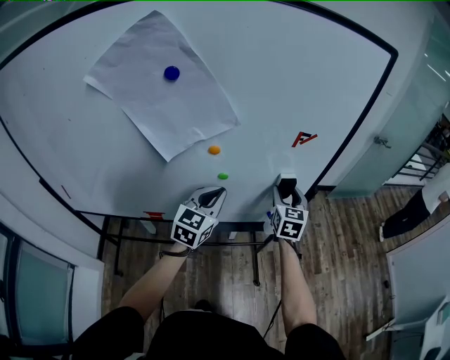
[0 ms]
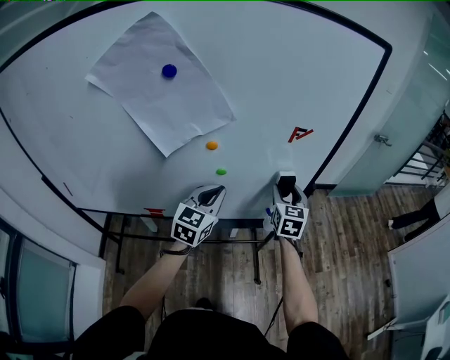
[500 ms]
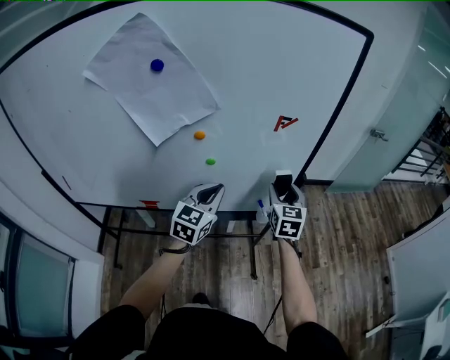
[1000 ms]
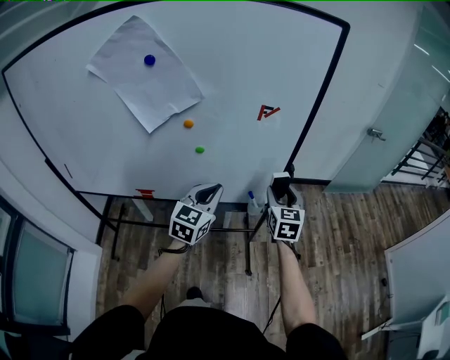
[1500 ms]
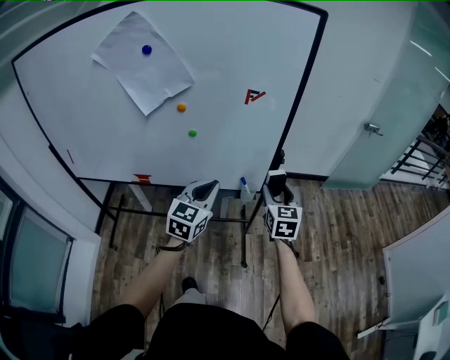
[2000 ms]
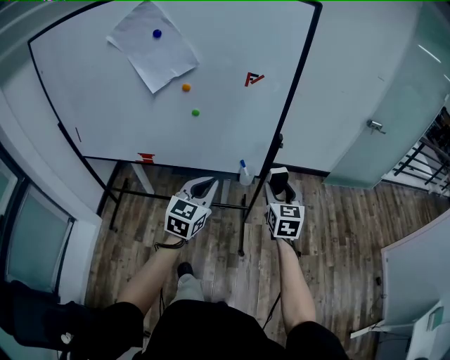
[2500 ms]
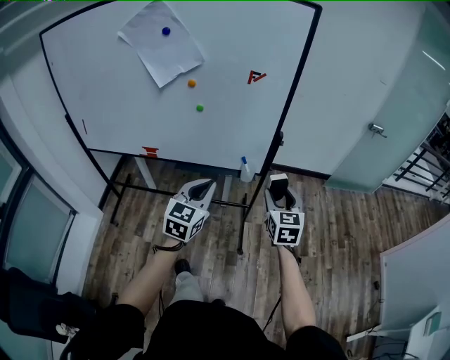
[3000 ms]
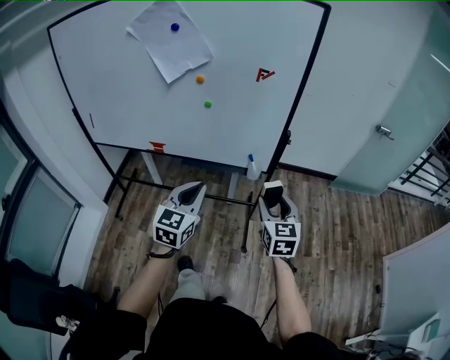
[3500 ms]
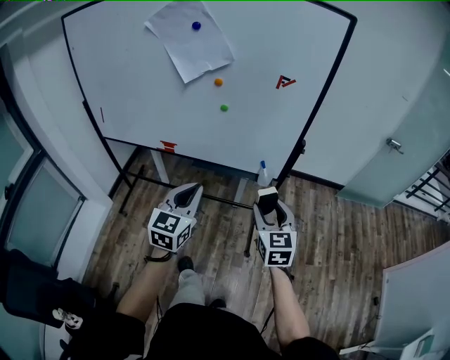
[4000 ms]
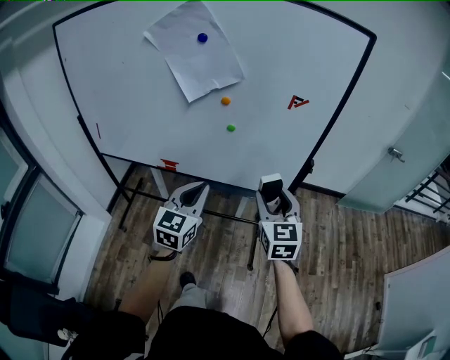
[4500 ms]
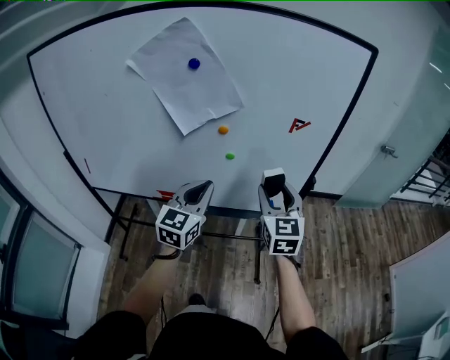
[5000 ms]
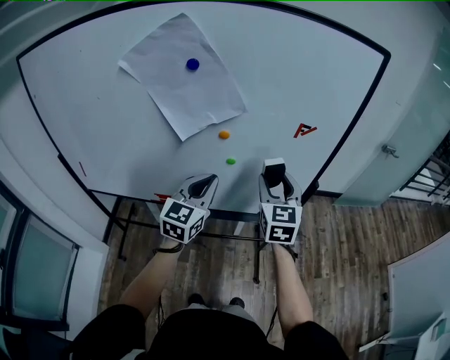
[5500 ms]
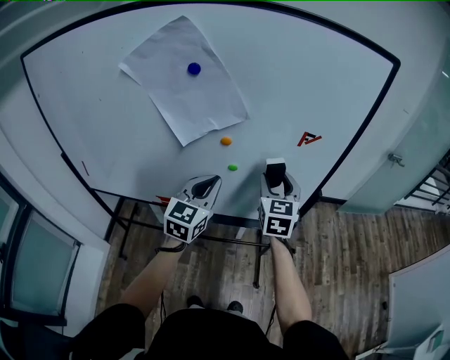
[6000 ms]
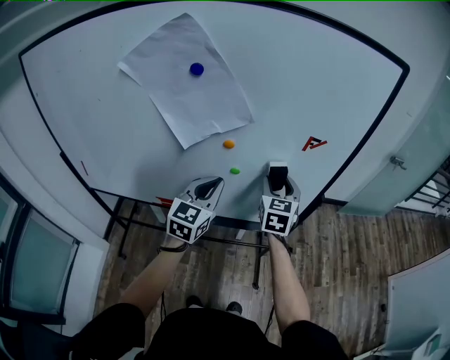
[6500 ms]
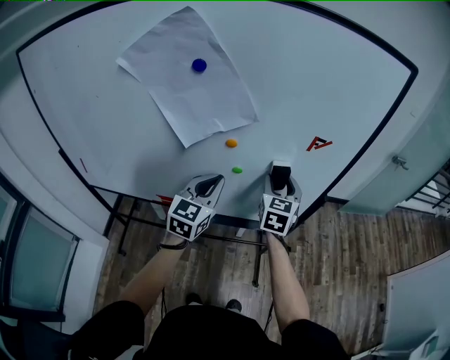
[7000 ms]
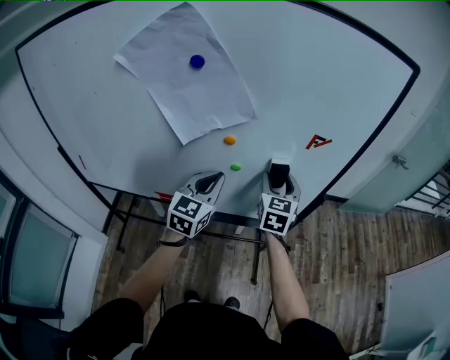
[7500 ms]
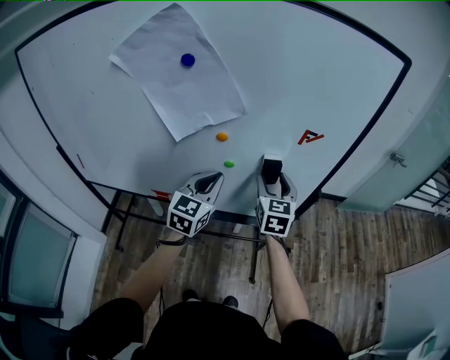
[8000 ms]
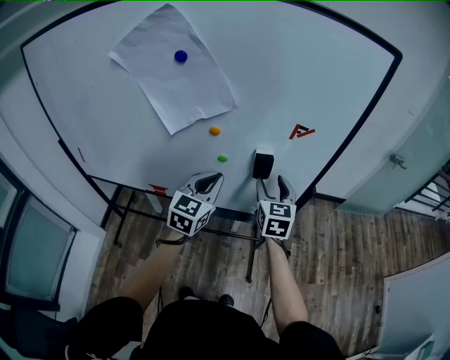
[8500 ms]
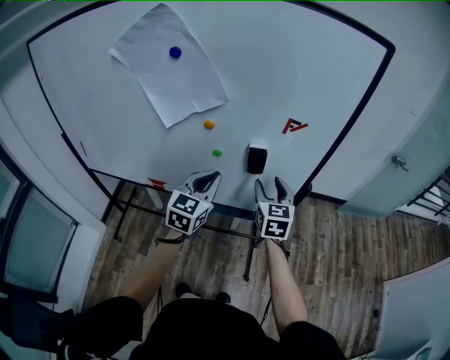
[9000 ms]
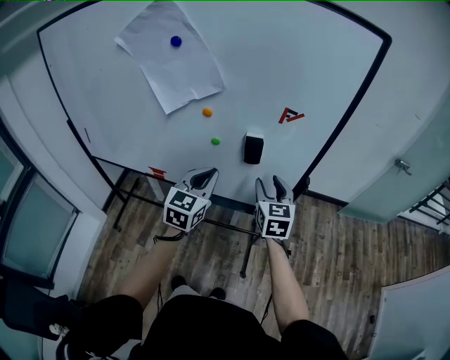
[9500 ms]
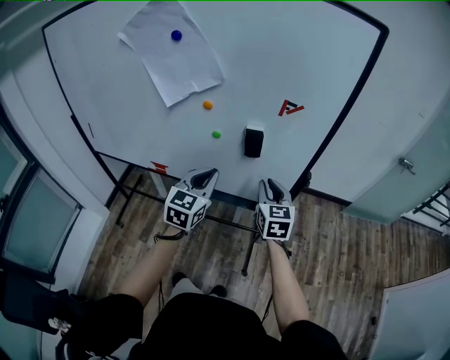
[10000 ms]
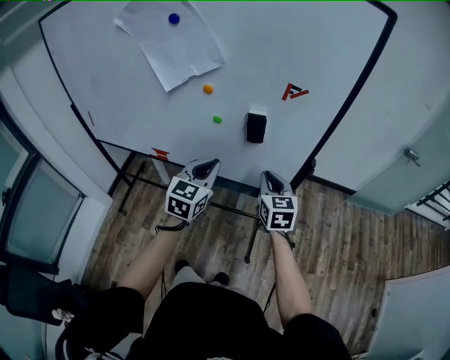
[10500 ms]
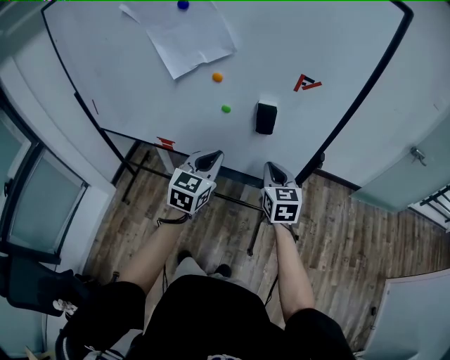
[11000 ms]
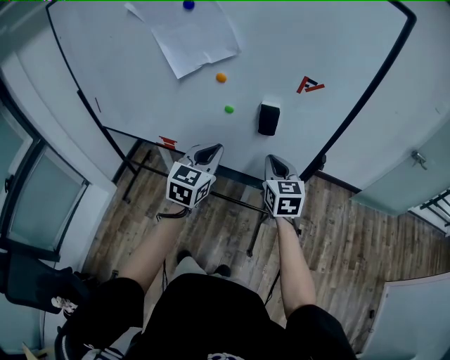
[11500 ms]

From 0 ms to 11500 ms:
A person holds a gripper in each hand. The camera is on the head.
From 0 ms to 2000 ms: The left gripper goes roughly 20 cm to the right and backward, while the right gripper moves backward and to the right, some 20 cm.
From 2000 ms to 4000 ms: The right gripper travels backward by some 15 cm, while the left gripper moves backward and to the left, some 15 cm.
From 4000 ms to 6000 ms: The left gripper goes roughly 25 cm forward. Meanwhile the right gripper goes about 30 cm forward and to the left.
From 6000 ms to 7500 ms: The right gripper changes place by approximately 5 cm.
From 7500 ms to 9500 ms: Both grippers travel together to the right and backward, approximately 10 cm.
From 9500 ms to 11500 ms: The right gripper closes up.

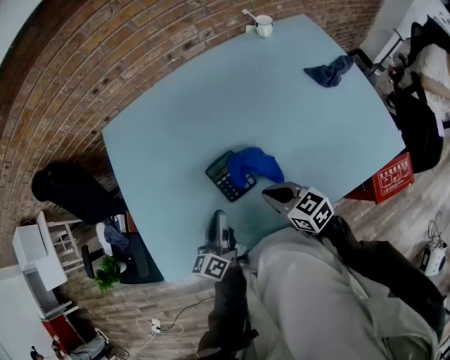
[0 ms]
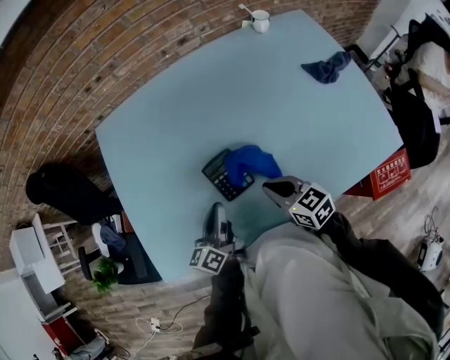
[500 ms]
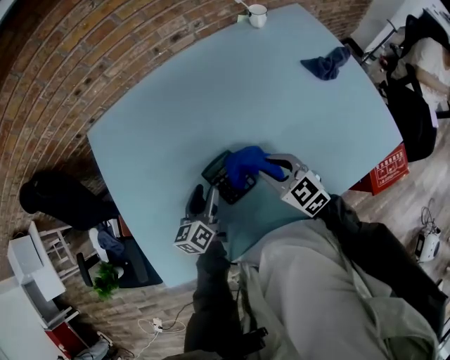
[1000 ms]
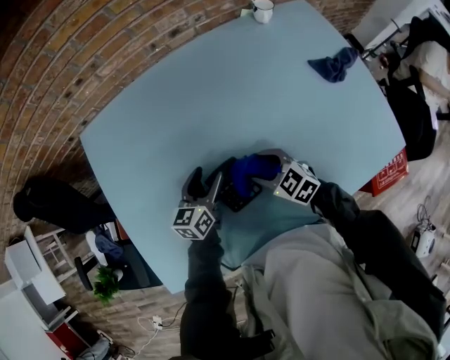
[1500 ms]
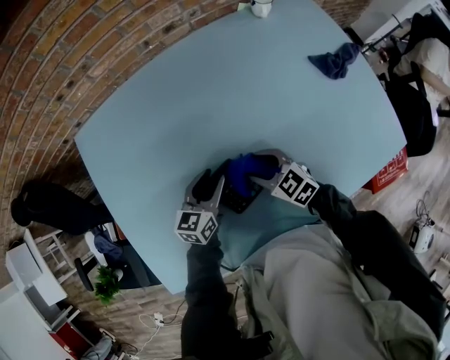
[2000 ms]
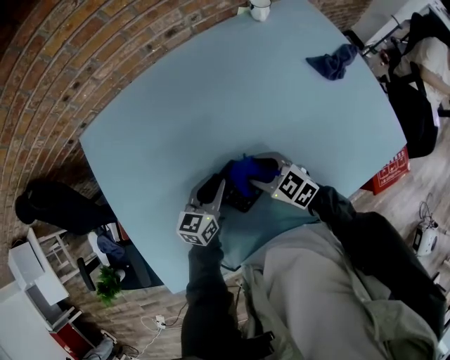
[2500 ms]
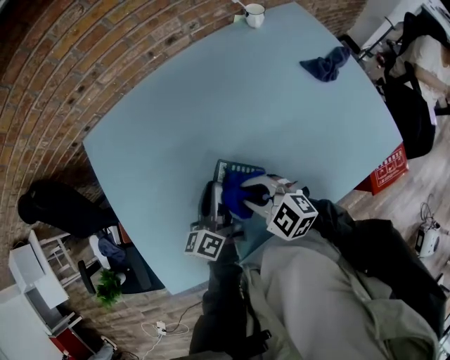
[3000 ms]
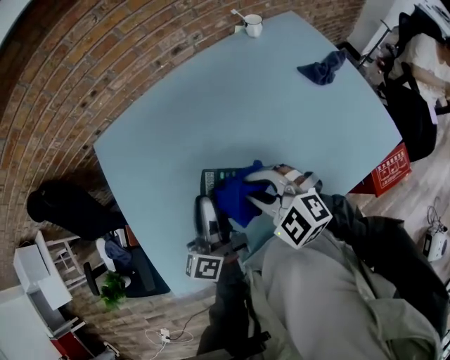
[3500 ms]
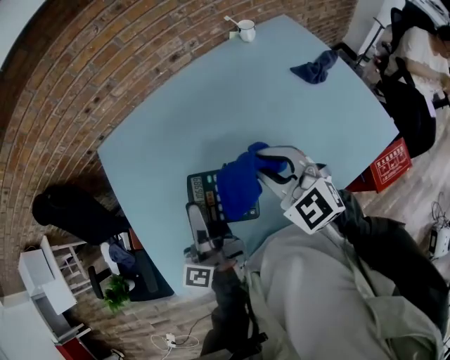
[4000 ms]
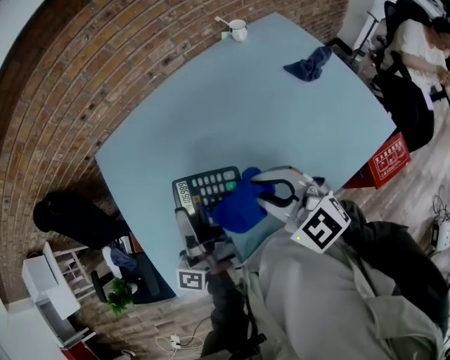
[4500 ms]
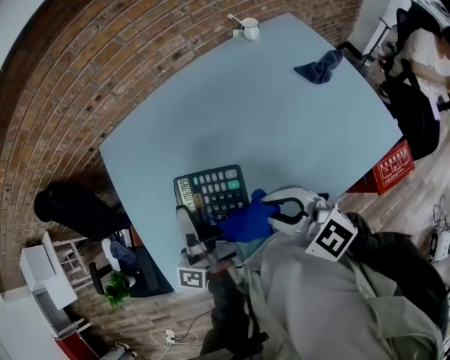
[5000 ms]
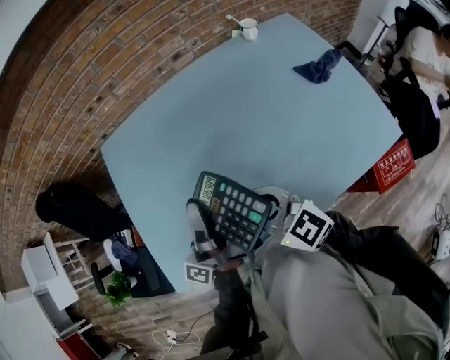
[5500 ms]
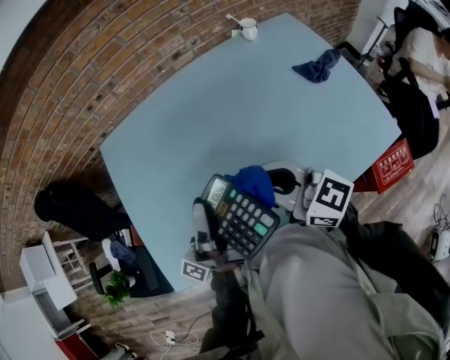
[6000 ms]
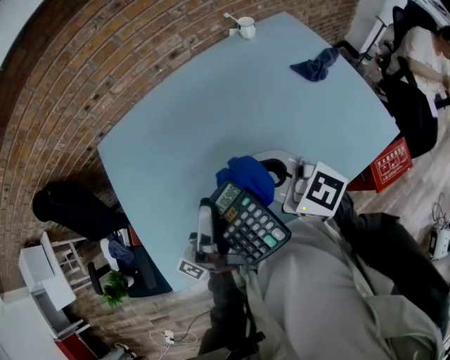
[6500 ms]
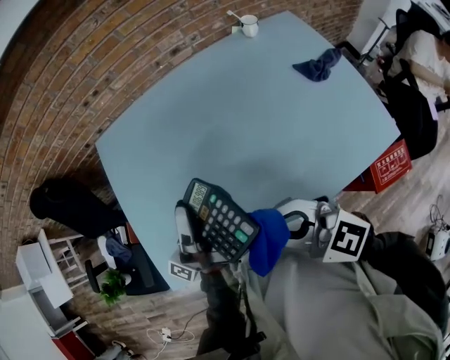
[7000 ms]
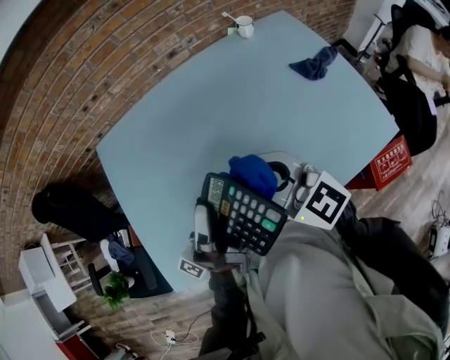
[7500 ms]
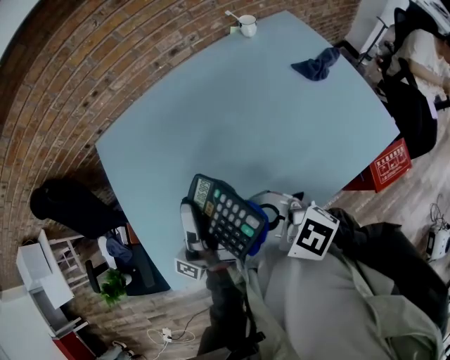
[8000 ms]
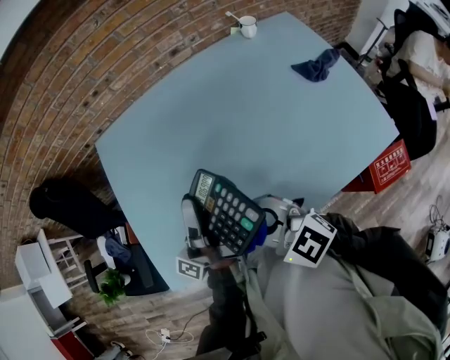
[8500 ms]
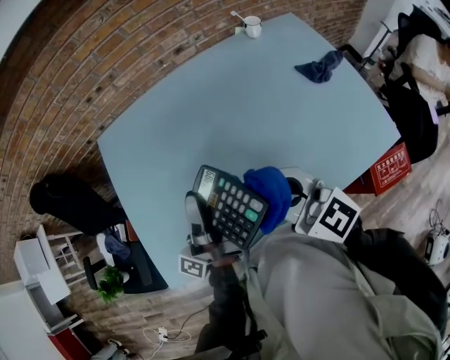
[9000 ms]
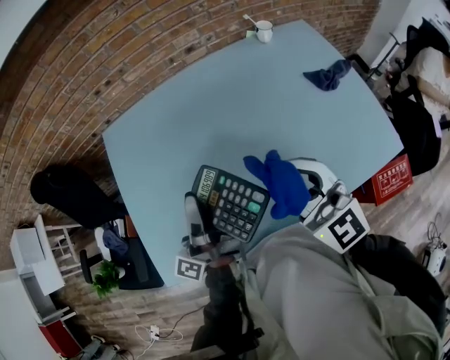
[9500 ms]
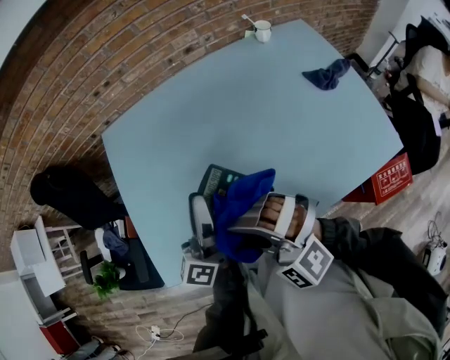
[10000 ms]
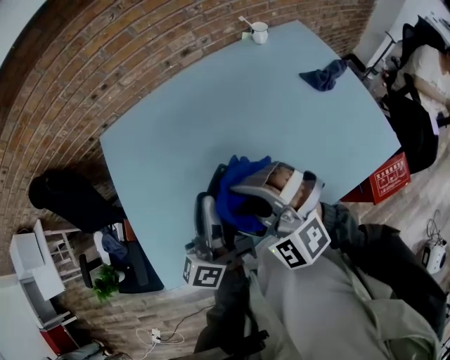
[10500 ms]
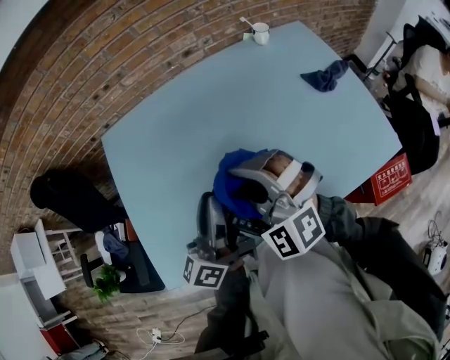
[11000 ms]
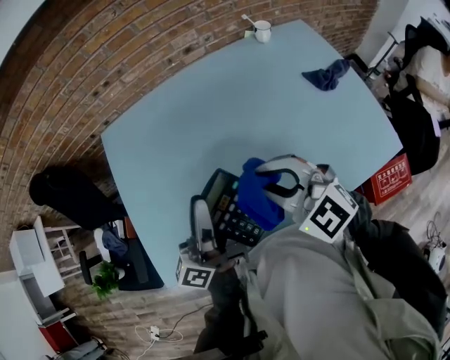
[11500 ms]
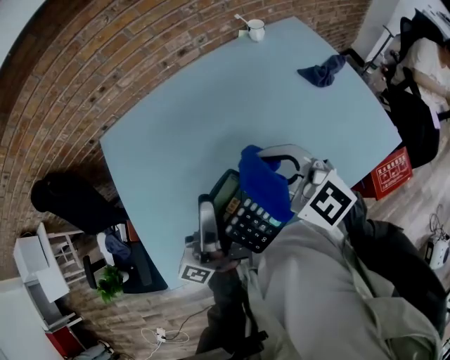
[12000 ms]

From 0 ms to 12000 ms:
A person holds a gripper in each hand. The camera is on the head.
From 0 ms to 2000 ms: The two grippers go some 15 cm forward and downward. The right gripper opens. Meanwhile the left gripper rotates some 40 degrees, and opens up.
From 2000 ms to 4000 ms: The left gripper travels upward and backward by about 25 cm, points its fingers about 40 degrees further upward, and closes up. The right gripper shifts approximately 25 cm upward, rotates approximately 30 degrees, and closes.
From 4000 ms to 6000 ms: The left gripper changes its angle by roughly 30 degrees; the right gripper swivels approximately 40 degrees.
From 6000 ms to 8000 ms: The right gripper moves forward and backward over roughly 10 cm, changing direction 2 times, and changes its angle by some 30 degrees.
From 8000 ms to 10000 ms: The left gripper changes its angle by about 40 degrees. Meanwhile the right gripper moves about 10 cm to the right and comes back, and rotates around the line of its fingers by some 40 degrees, counterclockwise from behind.
From 10000 ms to 12000 ms: The right gripper moves to the right and forward, approximately 15 cm, and swivels approximately 40 degrees, while the left gripper ends up approximately 5 cm from where it was, and changes its angle by roughly 30 degrees.

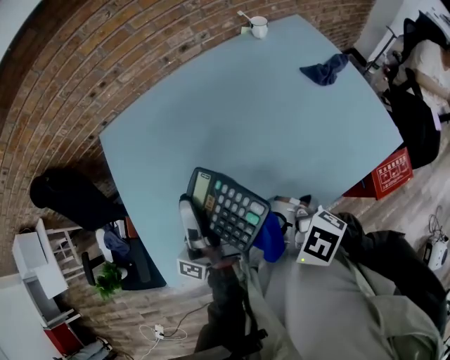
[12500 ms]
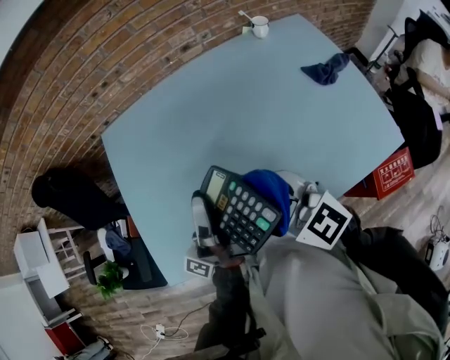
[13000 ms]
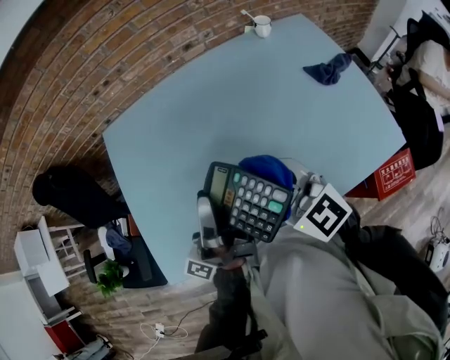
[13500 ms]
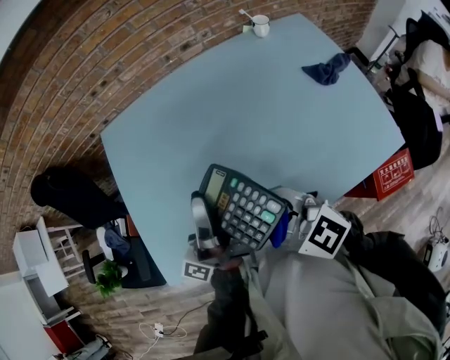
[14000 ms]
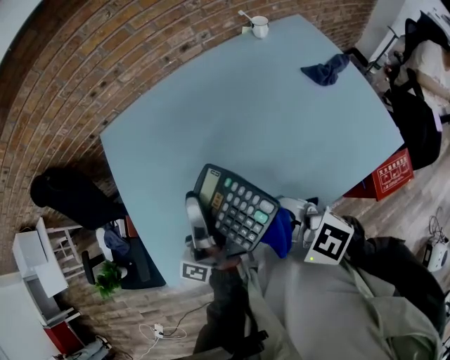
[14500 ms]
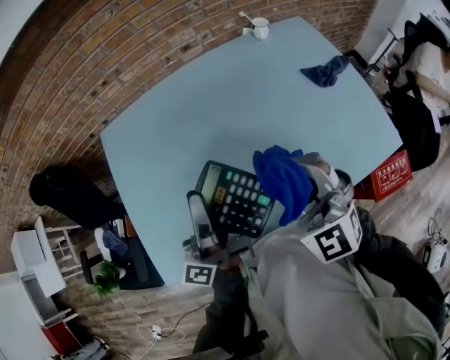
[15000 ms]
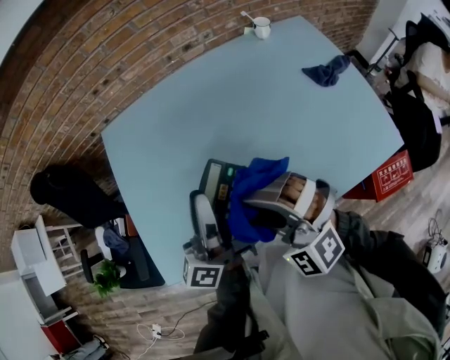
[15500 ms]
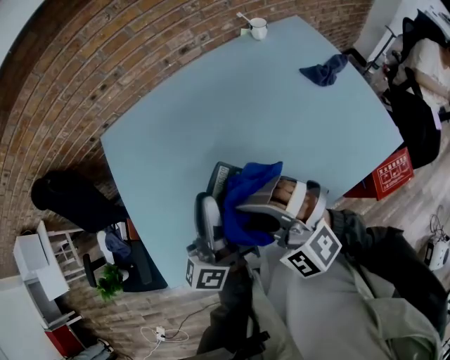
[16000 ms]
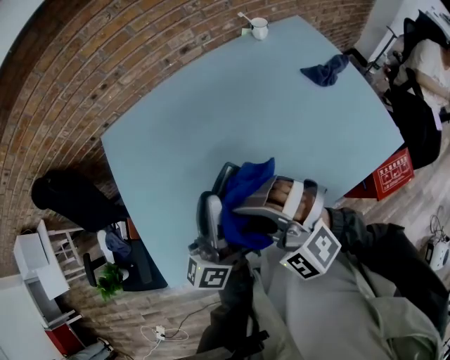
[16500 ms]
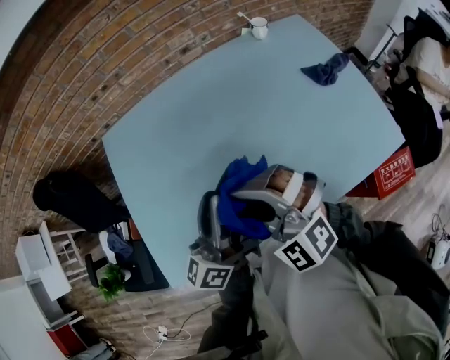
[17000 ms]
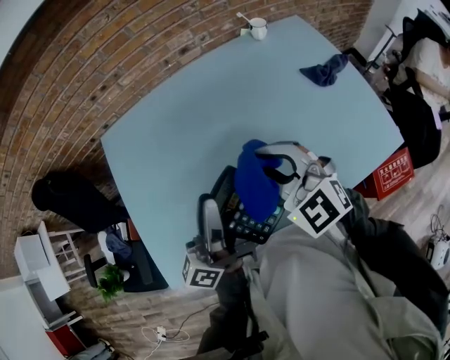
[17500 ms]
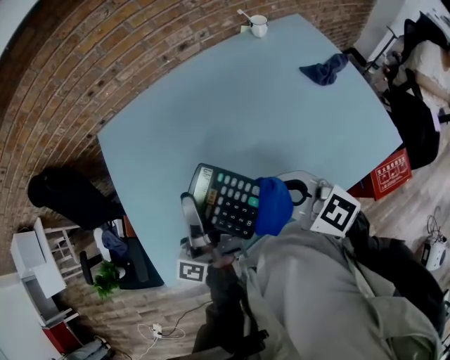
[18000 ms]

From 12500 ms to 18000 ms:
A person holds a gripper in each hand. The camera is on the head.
From 12500 ms to 14500 ms: The right gripper travels to the right and back again, about 10 cm each way.
From 14500 ms to 16000 ms: The left gripper turns by roughly 30 degrees. Meanwhile the right gripper reaches approximately 10 cm to the right, then returns, and twists some 40 degrees counterclockwise, seen from behind.
From 16000 ms to 18000 ms: The right gripper heads to the right, covering roughly 5 cm, and twists approximately 60 degrees clockwise, seen from behind. Meanwhile the left gripper swivels roughly 30 degrees.
